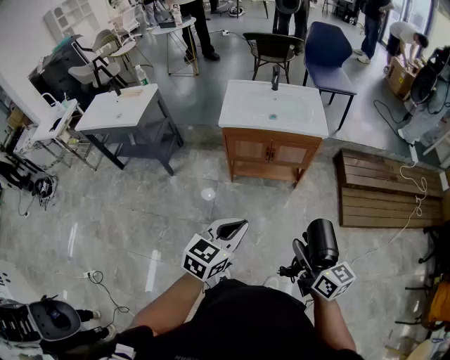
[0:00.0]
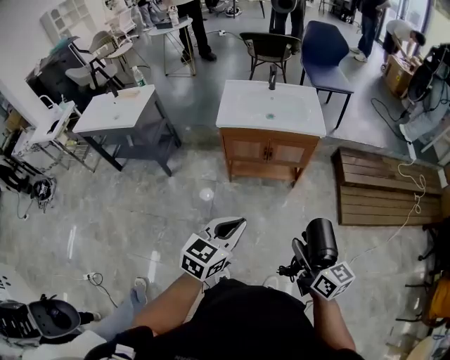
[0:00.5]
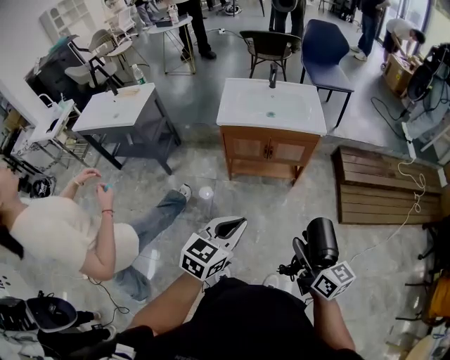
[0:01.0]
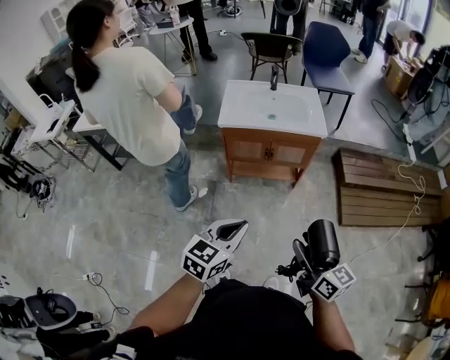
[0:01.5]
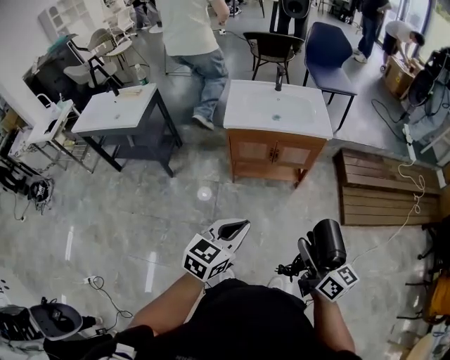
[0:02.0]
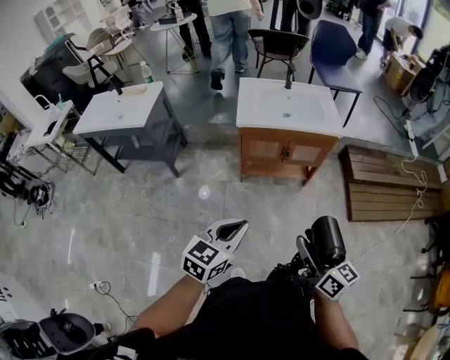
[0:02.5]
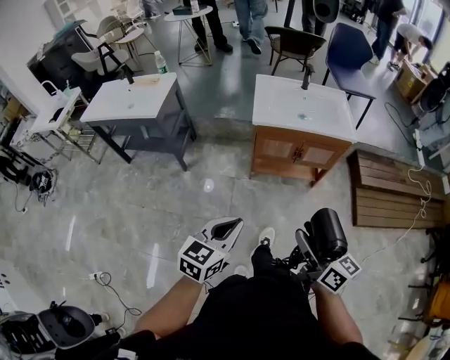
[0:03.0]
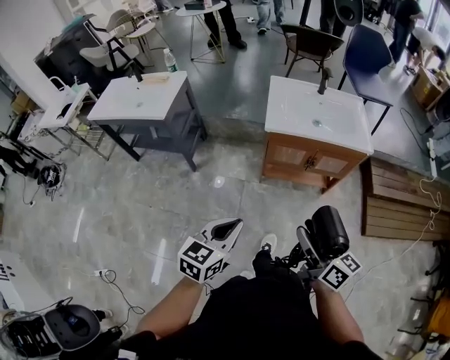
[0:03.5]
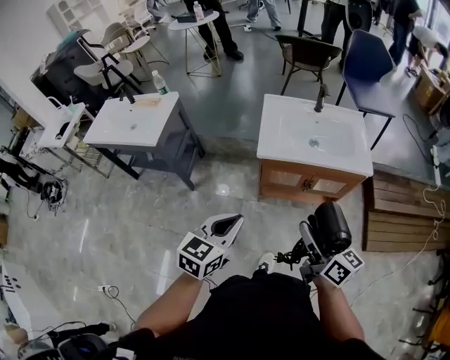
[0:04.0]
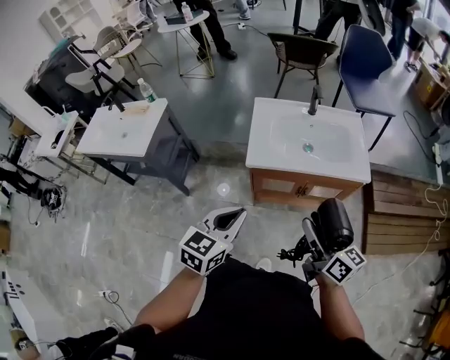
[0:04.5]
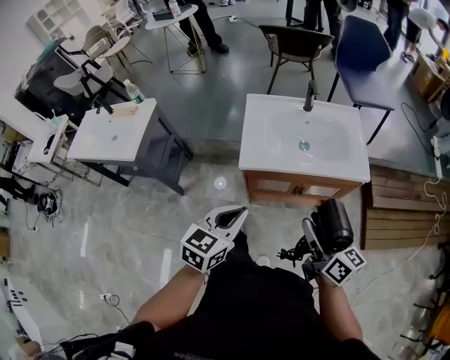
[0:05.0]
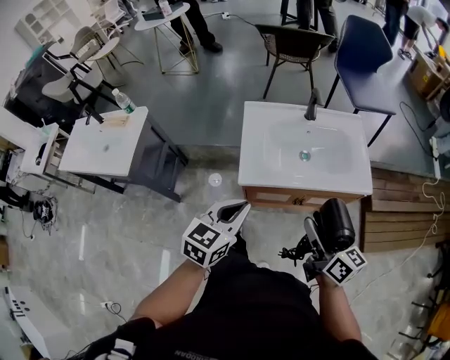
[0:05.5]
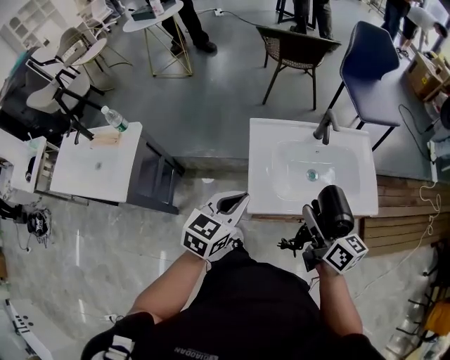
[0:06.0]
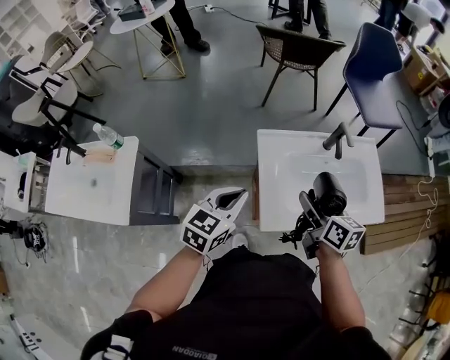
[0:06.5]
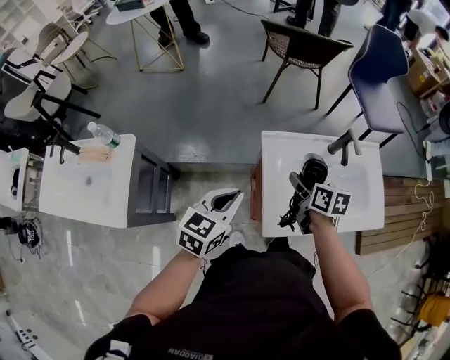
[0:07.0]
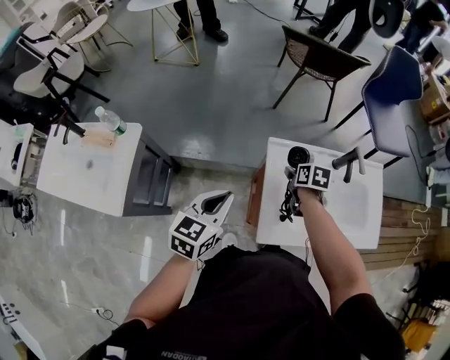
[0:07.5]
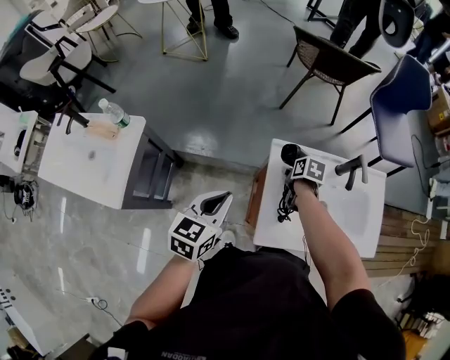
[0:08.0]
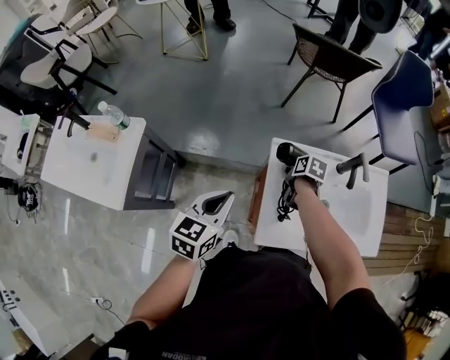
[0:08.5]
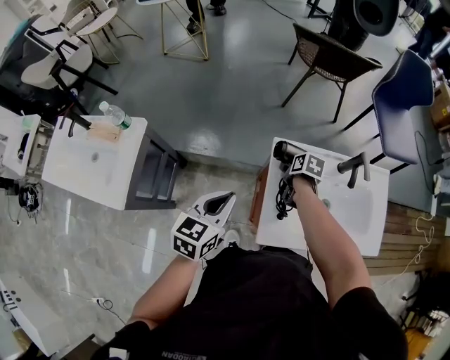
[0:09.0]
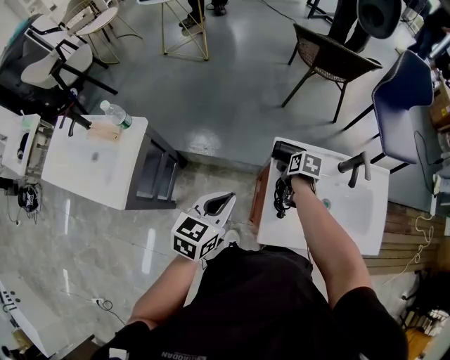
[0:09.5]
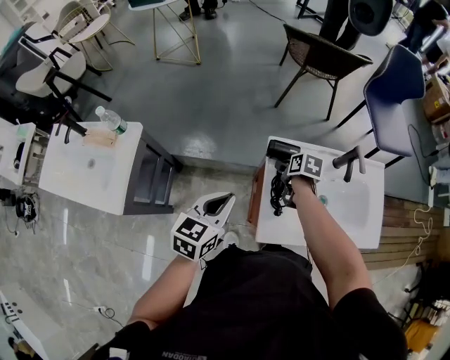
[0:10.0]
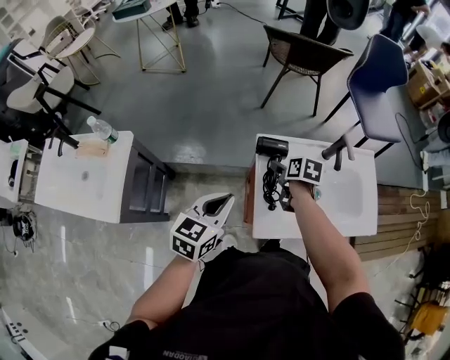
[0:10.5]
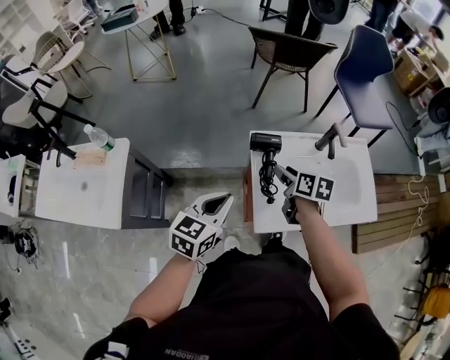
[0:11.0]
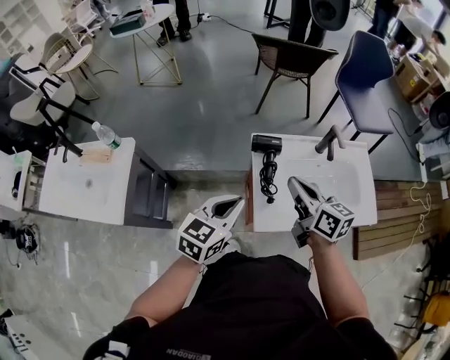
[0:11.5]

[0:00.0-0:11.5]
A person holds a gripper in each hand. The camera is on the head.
0:00.0 to 0:02.0: The grippers make only small movements.
0:02.0 to 0:04.0: Both grippers travel together forward and to the left, about 25 cm.
0:04.0 to 0:06.0: Both grippers travel together forward, roughly 35 cm.
0:06.0 to 0:07.5: The left gripper travels to the left and forward by about 15 cm; the right gripper heads forward, downward and to the left, covering roughly 35 cm, and tips its fingers downward by about 50 degrees.
0:07.5 to 0:09.5: The right gripper shifts by approximately 5 cm, and opens up.
0:09.5 to 0:11.5: The right gripper heads upward and backward, covering about 30 cm, angles its fingers upward, by roughly 50 degrees, and closes its fingers, while the left gripper goes some 10 cm to the right and backward.

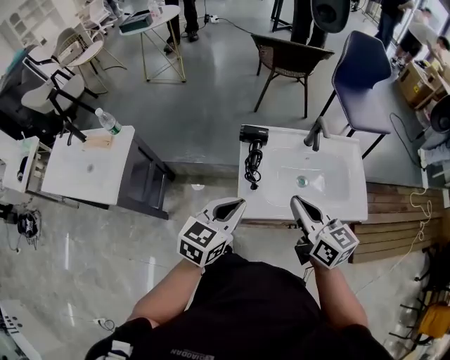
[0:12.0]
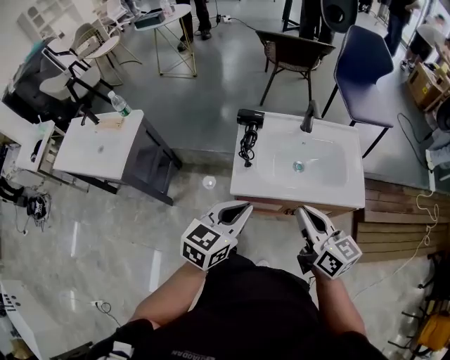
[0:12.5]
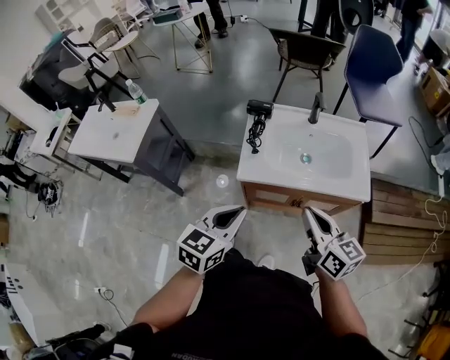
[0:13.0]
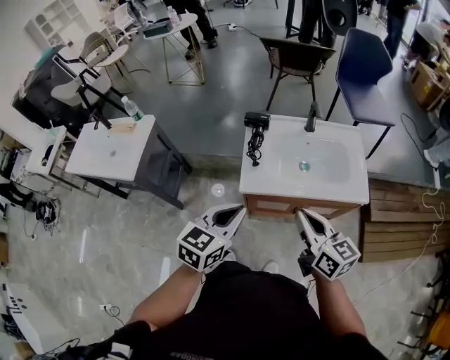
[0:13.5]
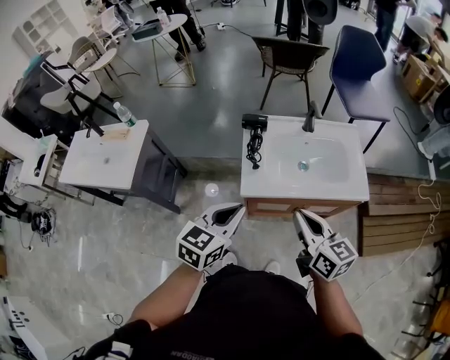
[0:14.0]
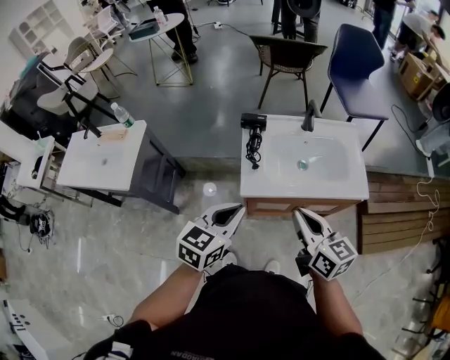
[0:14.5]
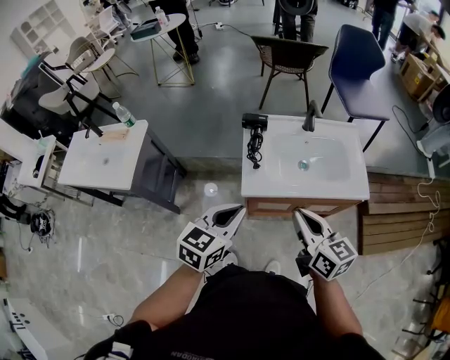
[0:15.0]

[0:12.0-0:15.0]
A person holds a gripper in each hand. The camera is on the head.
0:12.0 to 0:13.5: Both grippers travel together backward, roughly 15 cm.
0:13.5 to 0:15.0: The grippers make only small movements.

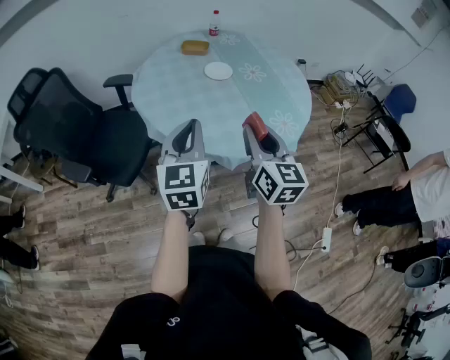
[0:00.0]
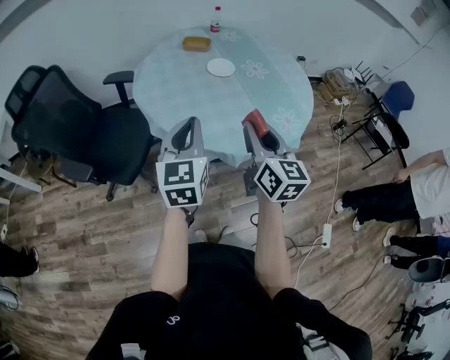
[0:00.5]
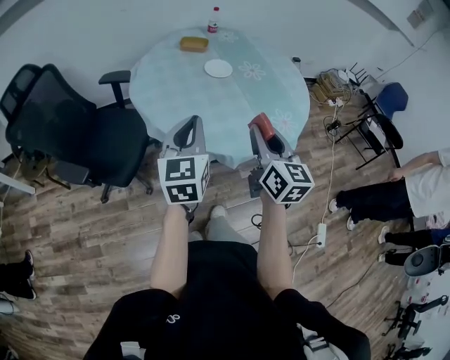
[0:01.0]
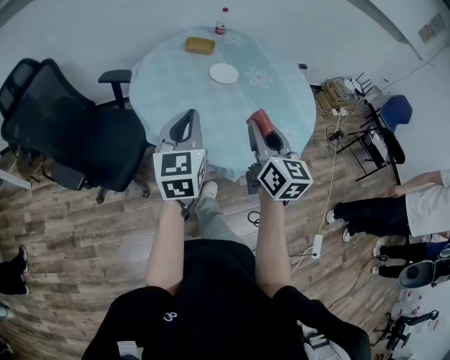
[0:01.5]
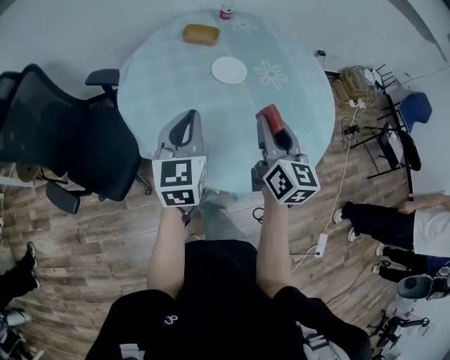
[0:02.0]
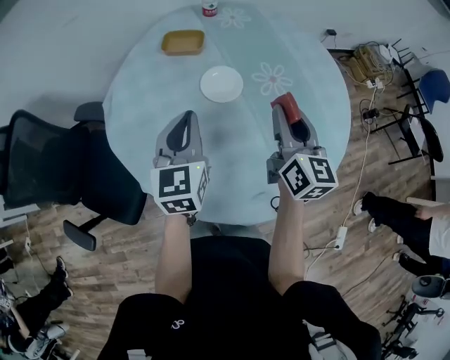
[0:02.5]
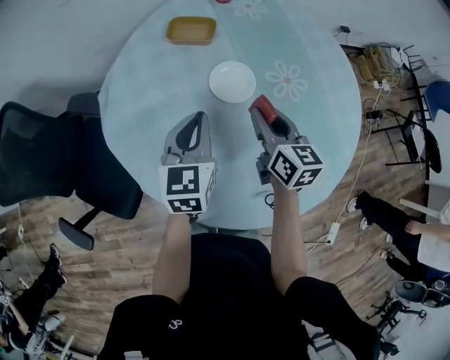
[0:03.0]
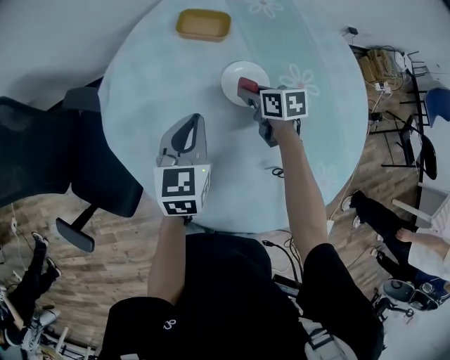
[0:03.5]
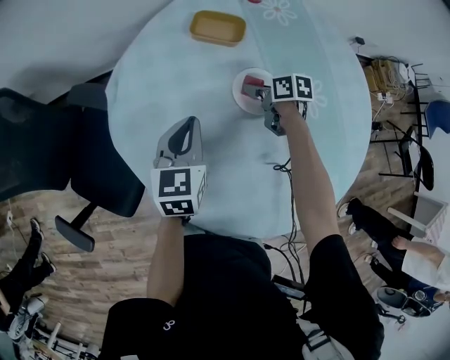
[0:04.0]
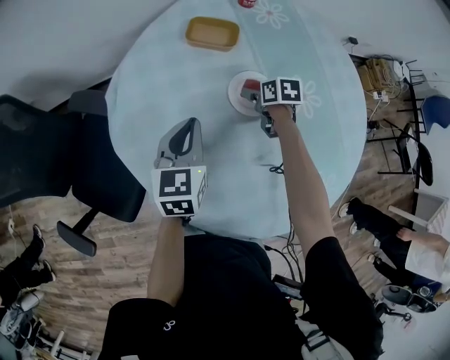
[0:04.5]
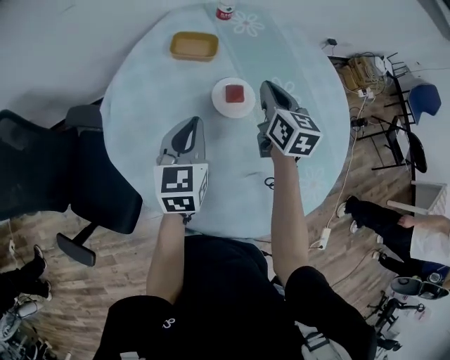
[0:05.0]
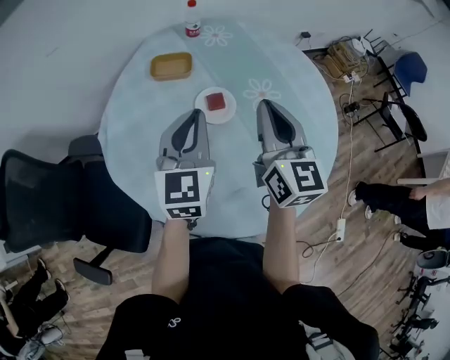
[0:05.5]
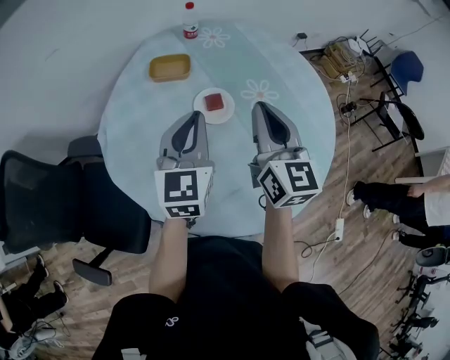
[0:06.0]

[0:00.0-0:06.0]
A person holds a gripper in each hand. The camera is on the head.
0:00.0 to 0:02.0: The two grippers go roughly 25 cm forward.
0:02.0 to 0:04.0: The right gripper heads forward and downward, covering approximately 50 cm, and tips its fingers downward by about 40 degrees. The left gripper moves forward and downward, about 30 cm.
0:04.0 to 0:06.0: The left gripper shifts roughly 15 cm upward, and changes its angle by about 30 degrees, while the right gripper goes roughly 35 cm upward, tips its fingers upward by roughly 40 degrees, and closes.

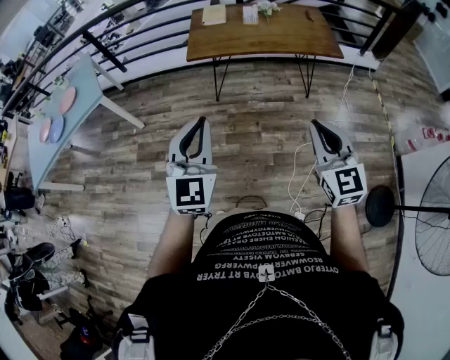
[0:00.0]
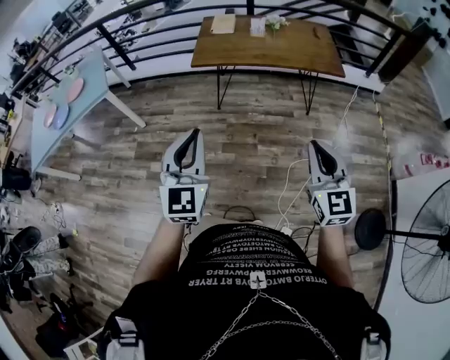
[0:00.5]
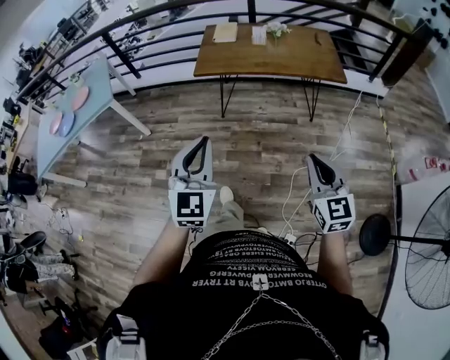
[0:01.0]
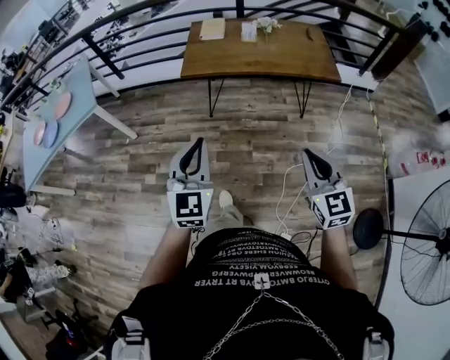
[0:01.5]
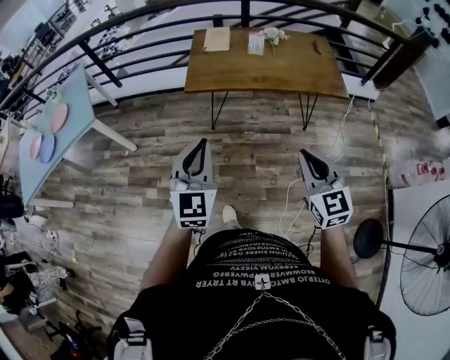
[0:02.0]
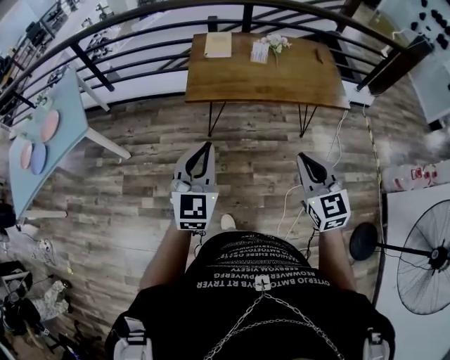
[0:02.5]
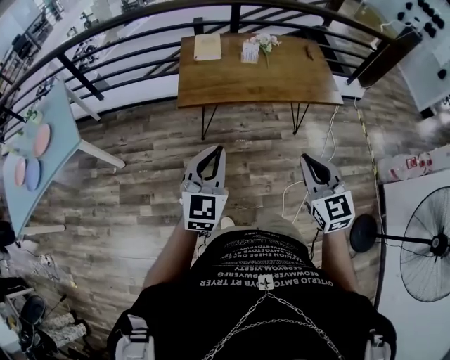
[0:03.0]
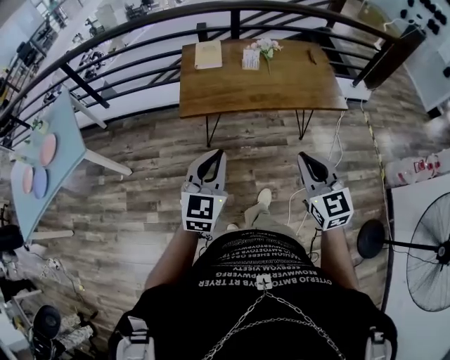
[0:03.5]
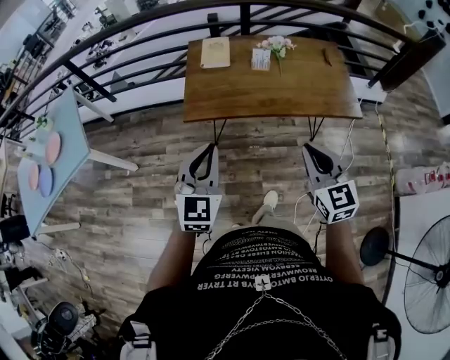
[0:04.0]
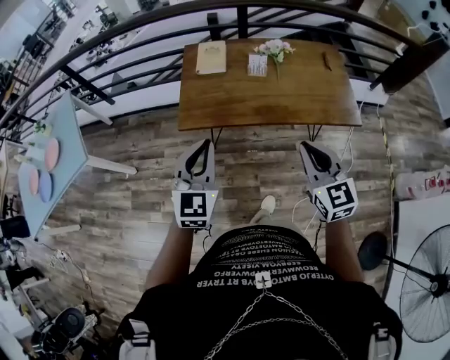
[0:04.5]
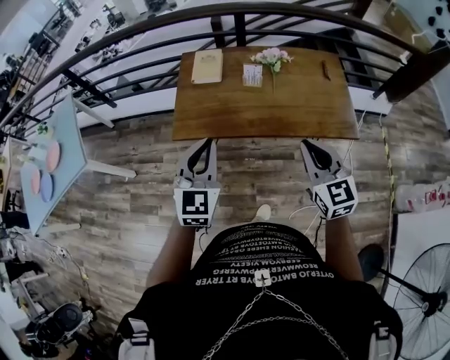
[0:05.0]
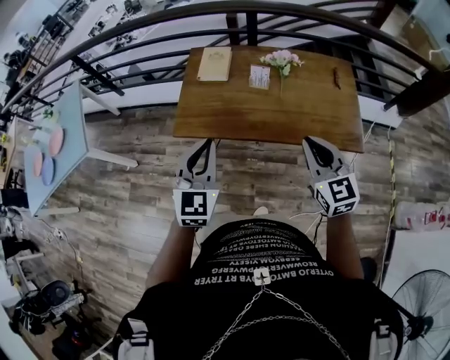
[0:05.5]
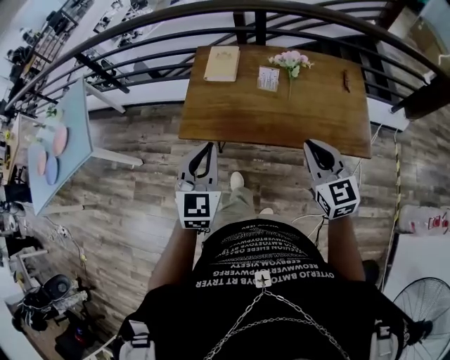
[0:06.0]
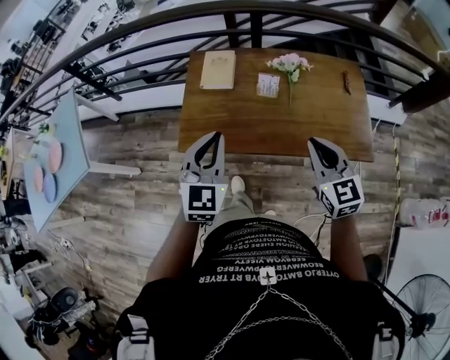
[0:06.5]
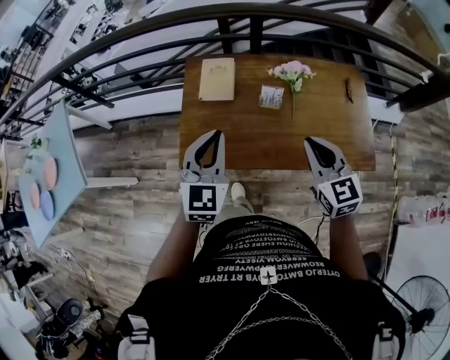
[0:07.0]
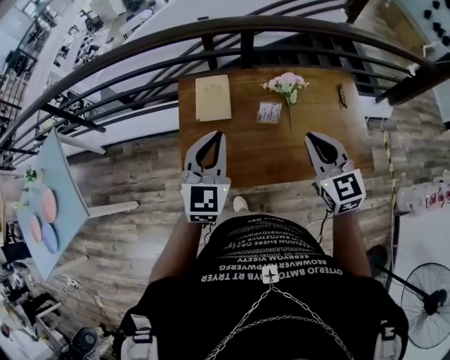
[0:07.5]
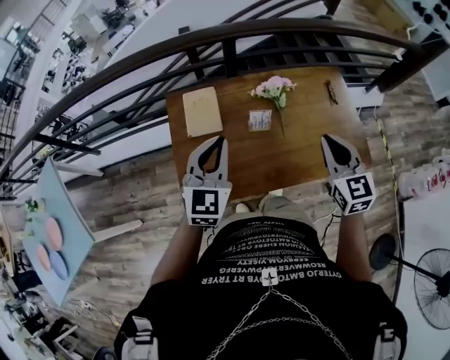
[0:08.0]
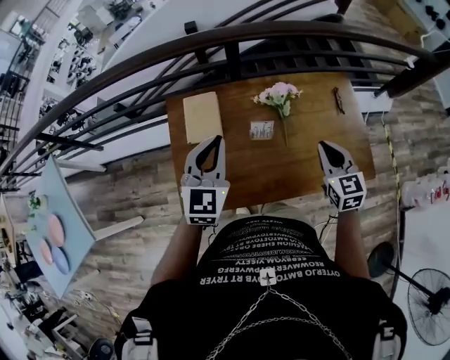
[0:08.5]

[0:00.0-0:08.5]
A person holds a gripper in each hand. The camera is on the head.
0:00.0 to 0:02.0: Both grippers move forward, approximately 15 cm.
0:02.0 to 0:04.0: Both grippers move forward, some 20 cm.
0:04.0 to 0:06.5: The left gripper moves forward and to the right, some 25 cm. The right gripper moves forward, some 25 cm.
0:06.5 to 0:08.5: Both grippers move forward, about 20 cm.
